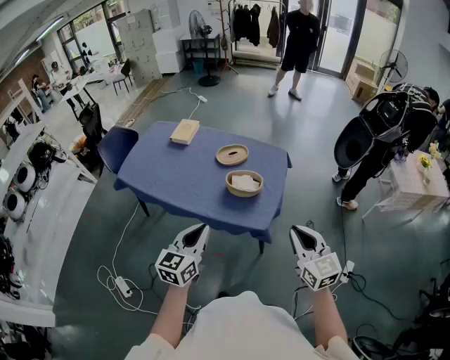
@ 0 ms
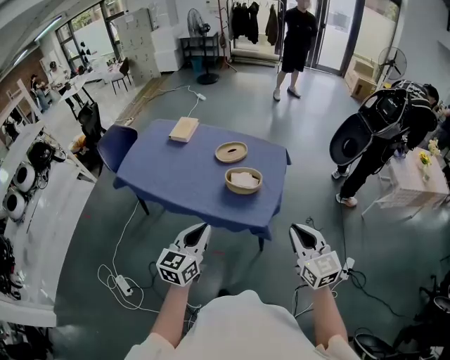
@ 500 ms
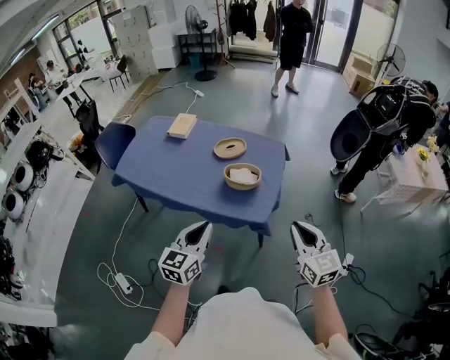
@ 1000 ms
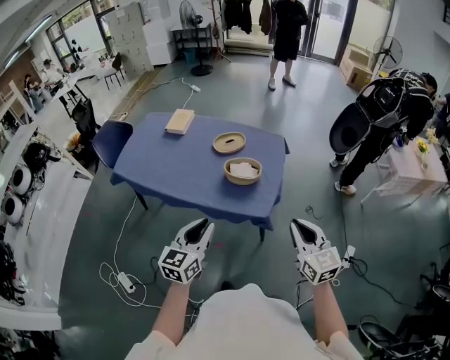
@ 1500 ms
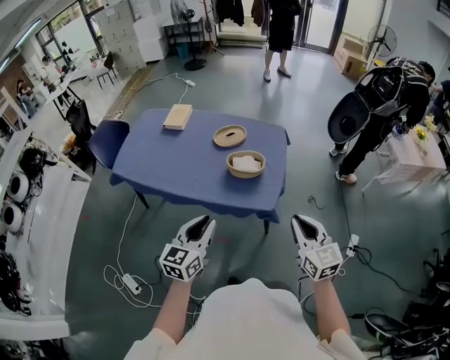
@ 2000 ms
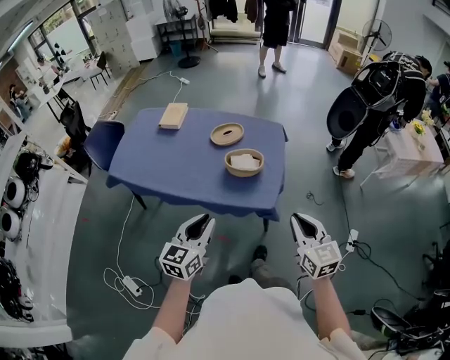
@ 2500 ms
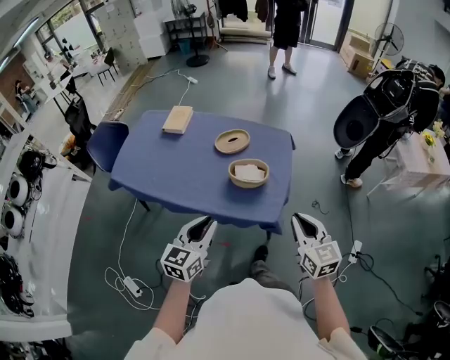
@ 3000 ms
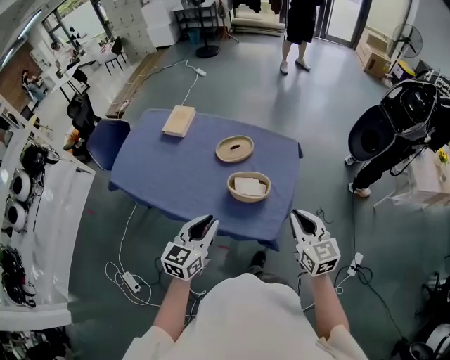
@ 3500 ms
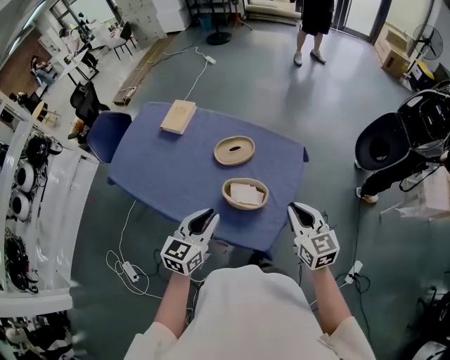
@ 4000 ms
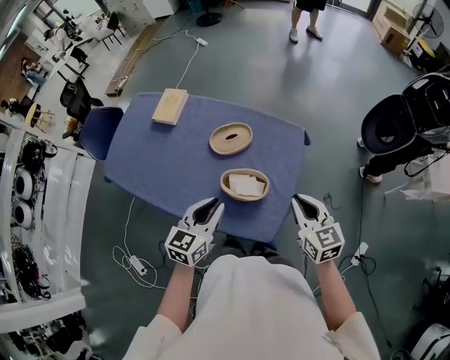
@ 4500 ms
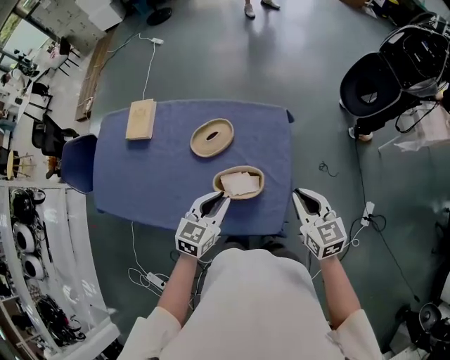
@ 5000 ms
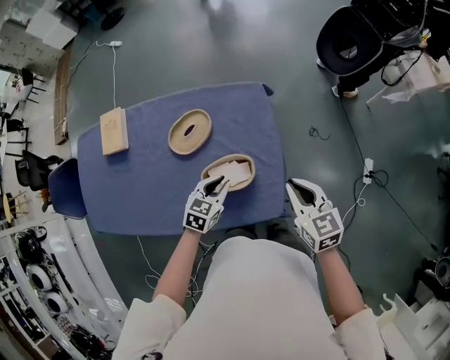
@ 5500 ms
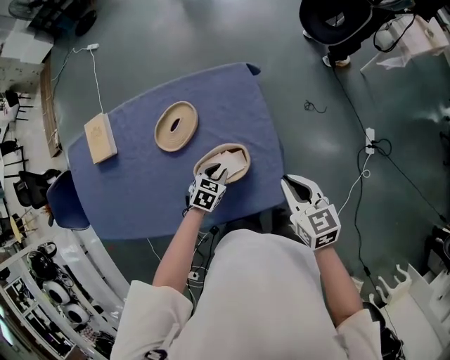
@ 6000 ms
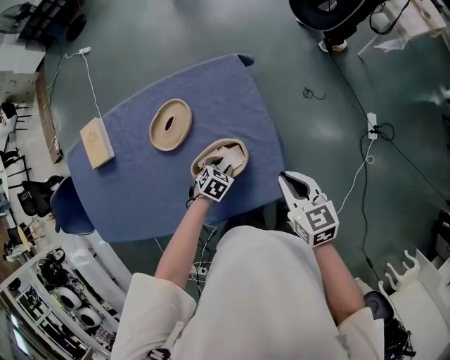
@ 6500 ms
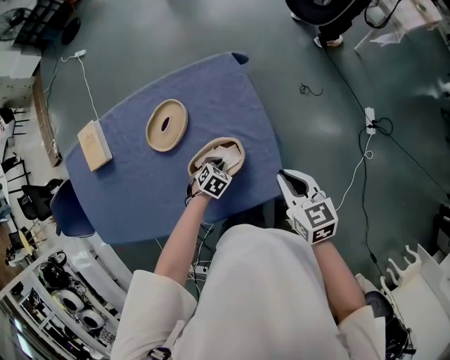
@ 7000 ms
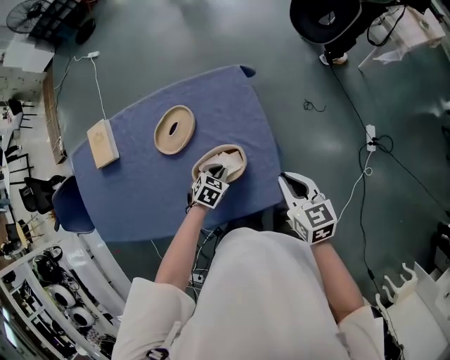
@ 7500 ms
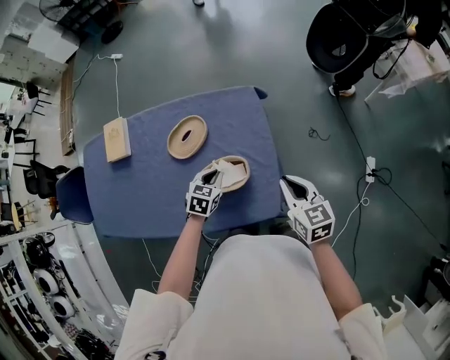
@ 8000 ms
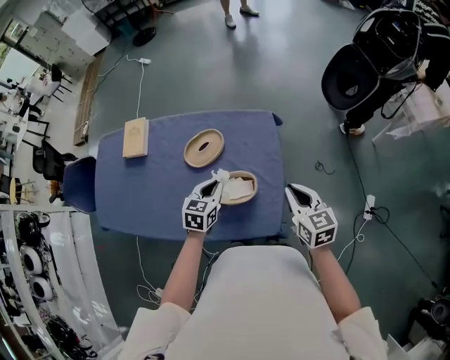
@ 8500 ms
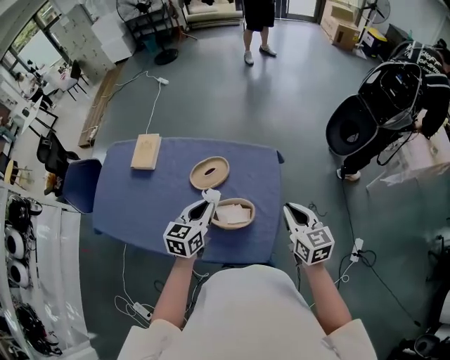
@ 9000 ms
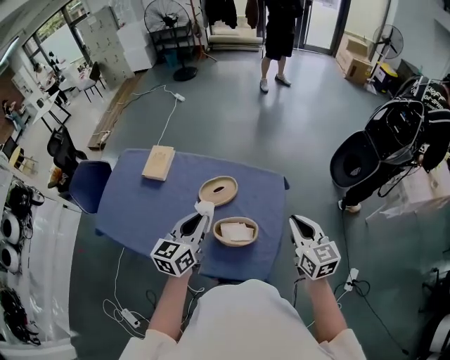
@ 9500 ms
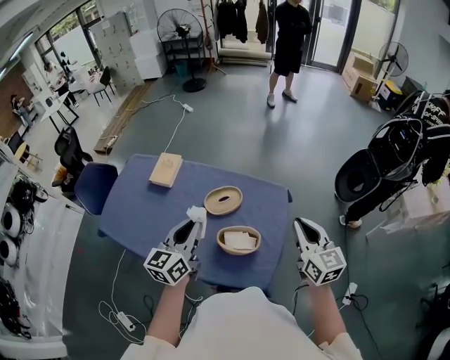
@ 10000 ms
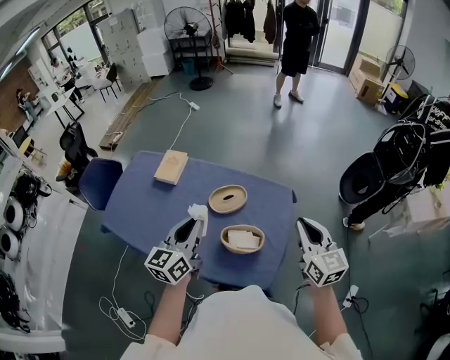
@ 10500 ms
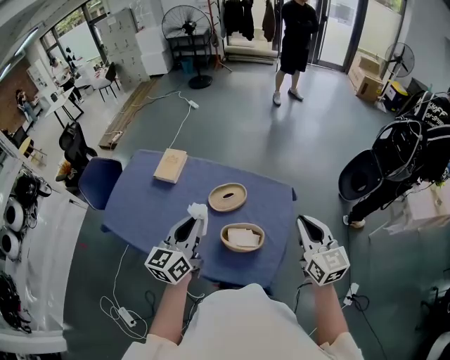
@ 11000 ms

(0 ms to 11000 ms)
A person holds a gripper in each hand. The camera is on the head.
0 ms - 2000 ms: The right gripper shifts by some 5 cm.
2000 ms - 3500 ms: Both grippers move forward, some 20 cm.
3500 ms - 5500 ms: The right gripper ends up some 20 cm from where it was, and turns by roughly 20 degrees; the left gripper shifts by approximately 35 cm, and turns by about 40 degrees.
5500 ms - 7500 ms: The left gripper moves downward, some 15 cm, and changes its angle by about 30 degrees. Meanwhile the right gripper travels downward by approximately 5 cm.
7500 ms - 9000 ms: The right gripper goes about 15 cm upward, and swivels about 20 degrees. Meanwhile the left gripper travels upward by about 30 cm, and tips its fingers upward by roughly 40 degrees.
9000 ms - 11000 ms: The left gripper goes approximately 15 cm upward, to the left and backward, and changes its angle by roughly 20 degrees. Meanwhile the right gripper is displaced upward by approximately 10 cm.

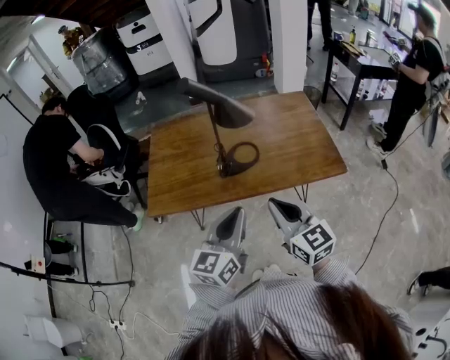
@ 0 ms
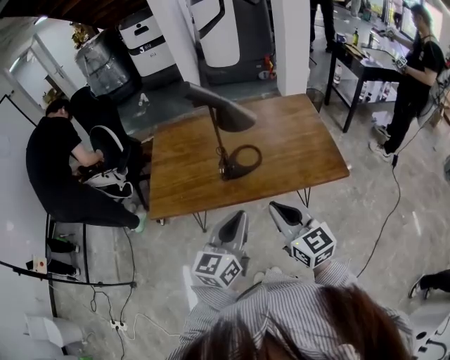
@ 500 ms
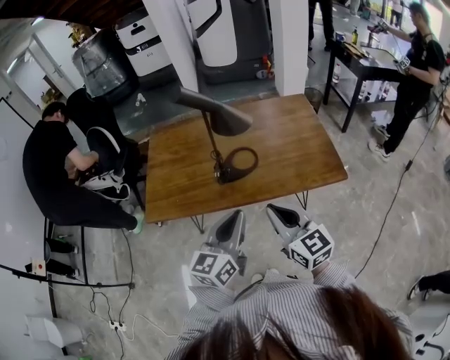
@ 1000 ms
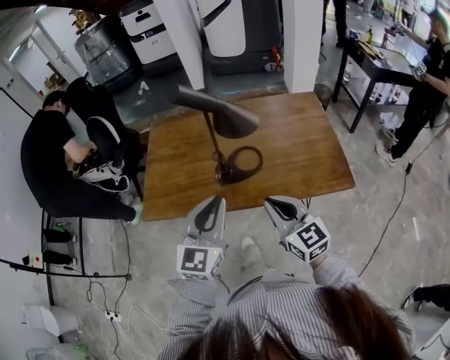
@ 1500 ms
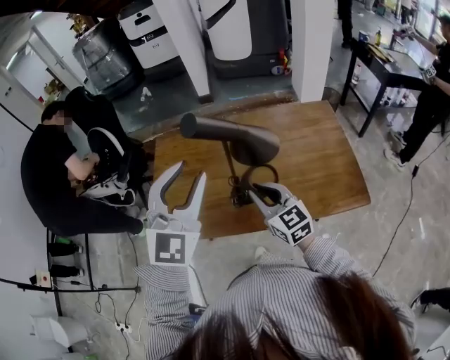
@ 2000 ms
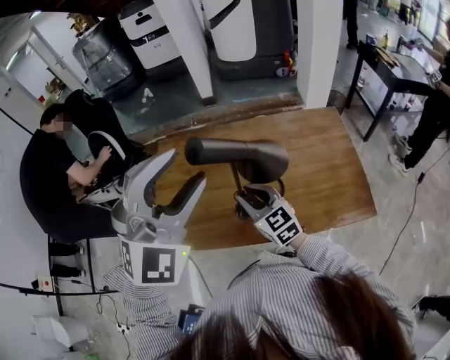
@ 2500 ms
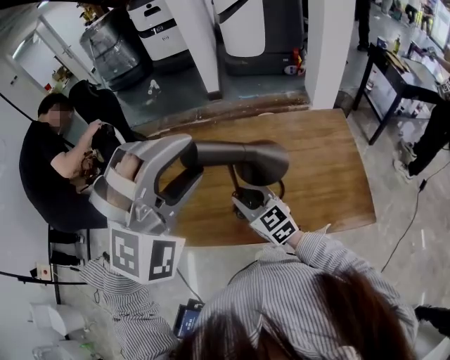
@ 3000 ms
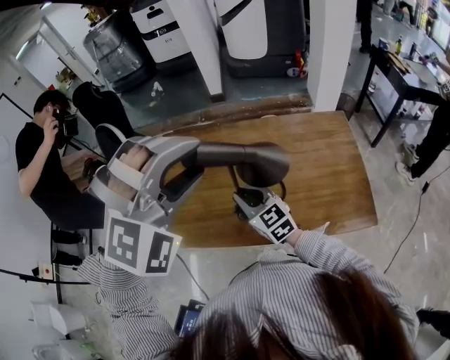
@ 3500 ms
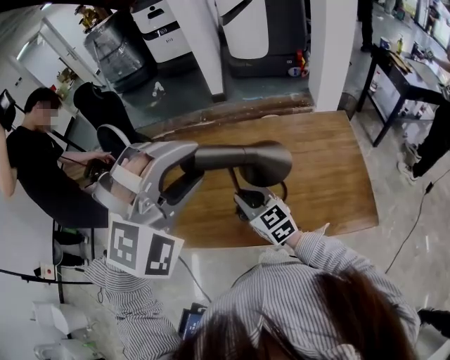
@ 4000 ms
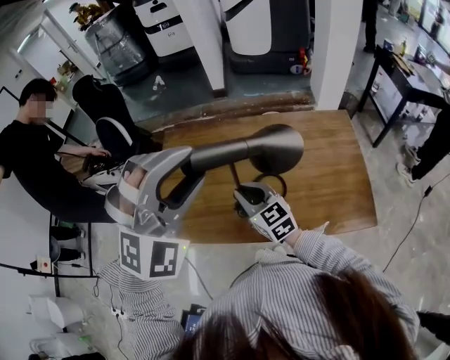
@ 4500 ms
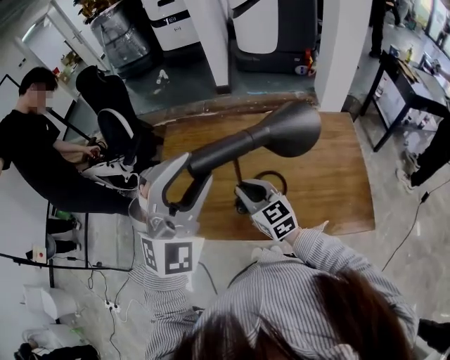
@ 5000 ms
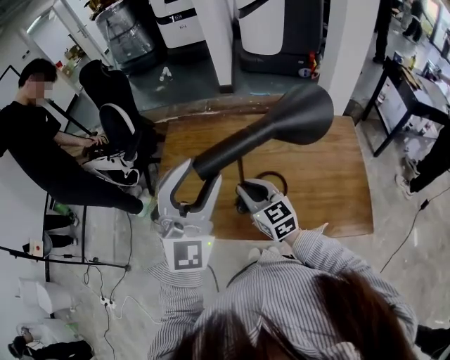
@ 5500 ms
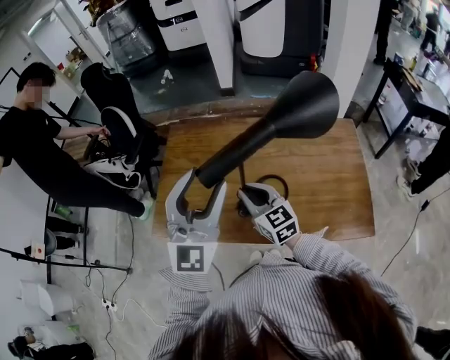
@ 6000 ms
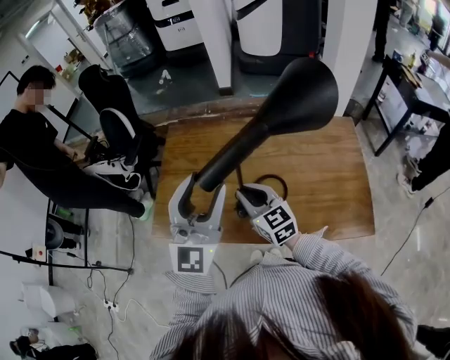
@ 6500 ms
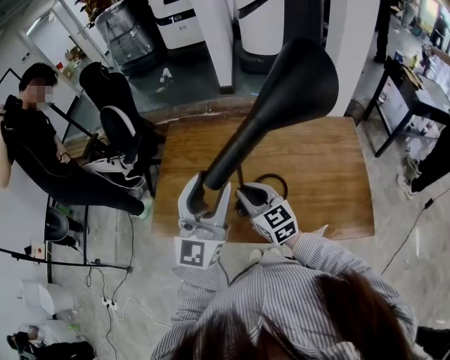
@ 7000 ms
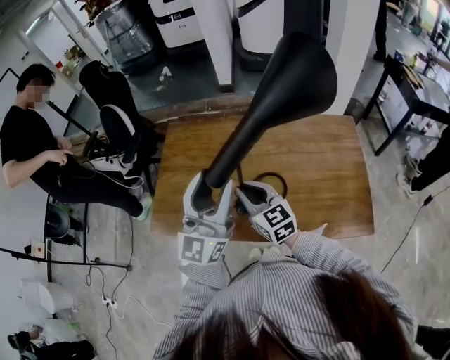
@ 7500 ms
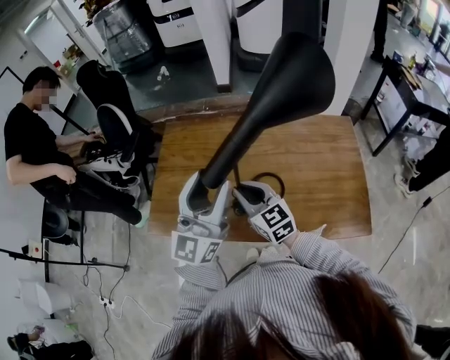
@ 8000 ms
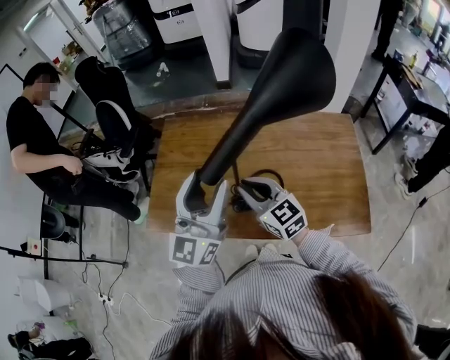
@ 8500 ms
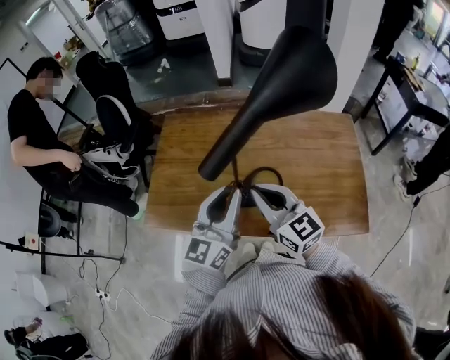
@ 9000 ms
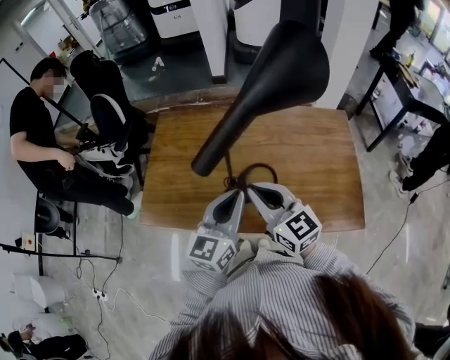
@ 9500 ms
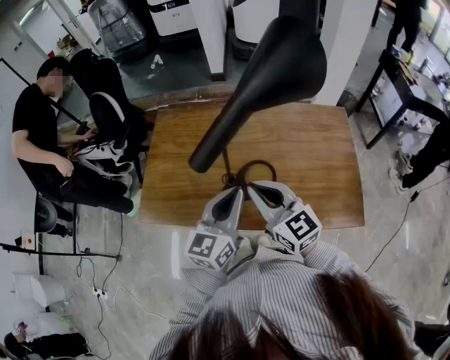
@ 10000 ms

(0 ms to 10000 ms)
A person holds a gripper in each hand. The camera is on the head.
0 ms - 2000 ms: The right gripper travels forward by some 25 cm; the left gripper shifts some 25 cm forward and upward, rotates around the line of its fingers by some 50 degrees, clockwise from behind, and opens its fingers.
2000 ms - 4000 ms: The right gripper is displaced forward by some 5 cm, while the left gripper travels to the right by some 5 cm, and twists about 50 degrees clockwise, seen from behind.
4000 ms - 6000 ms: The left gripper is displaced downward by some 5 cm, and tilts its fingers approximately 40 degrees upward.
6000 ms - 8000 ms: The left gripper rotates some 30 degrees.
8000 ms - 10000 ms: The right gripper travels backward, upward and to the right by about 10 cm. Meanwhile the left gripper is displaced downward and to the right by roughly 10 cm, changes its angle by some 30 degrees, and closes.

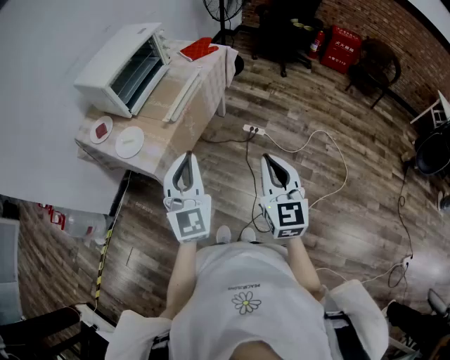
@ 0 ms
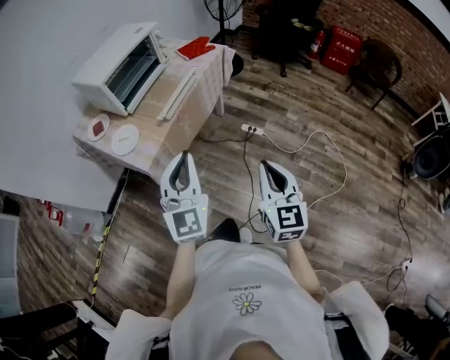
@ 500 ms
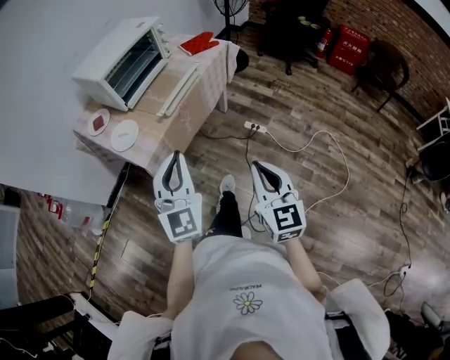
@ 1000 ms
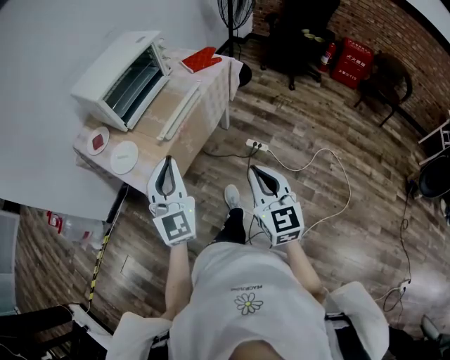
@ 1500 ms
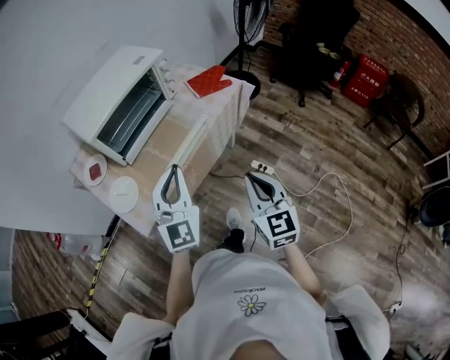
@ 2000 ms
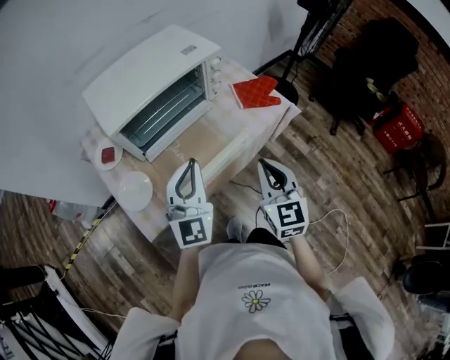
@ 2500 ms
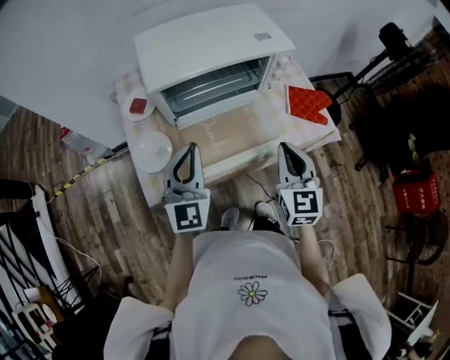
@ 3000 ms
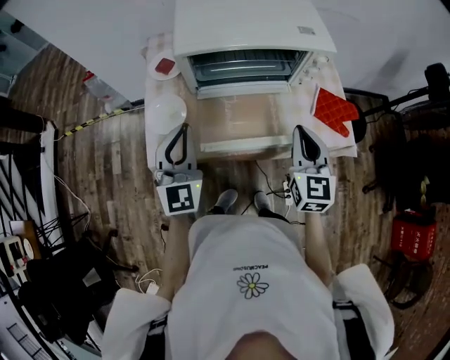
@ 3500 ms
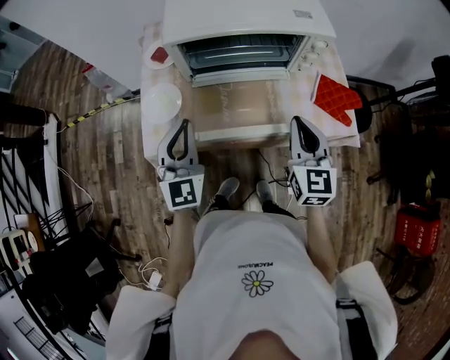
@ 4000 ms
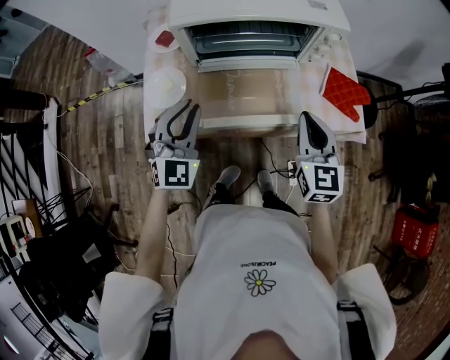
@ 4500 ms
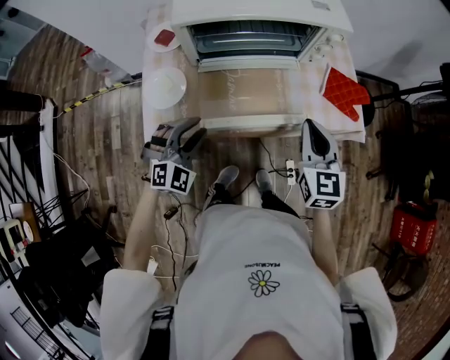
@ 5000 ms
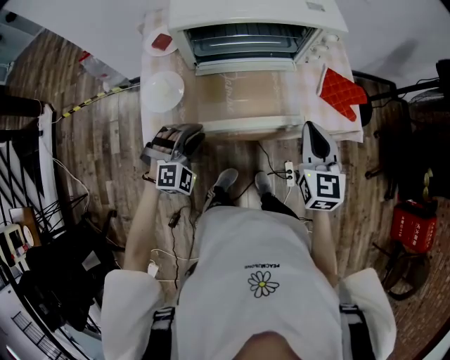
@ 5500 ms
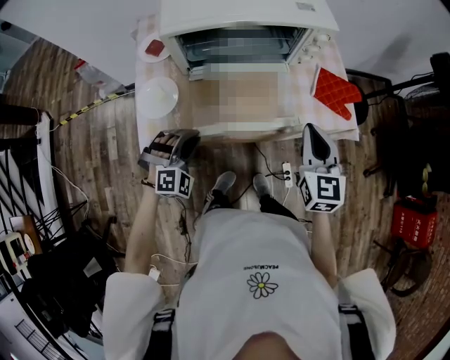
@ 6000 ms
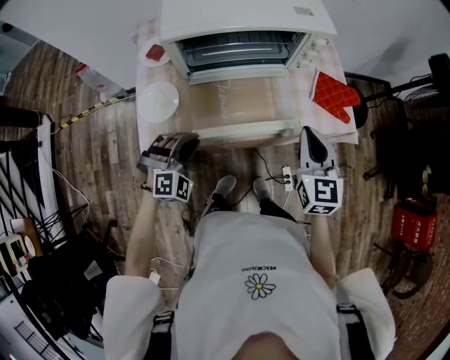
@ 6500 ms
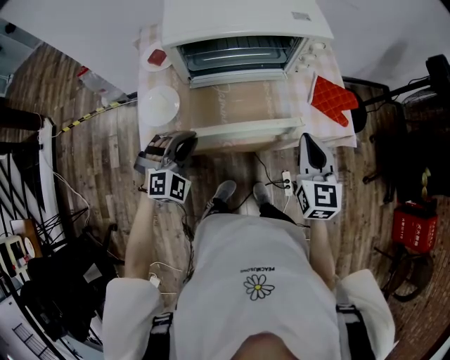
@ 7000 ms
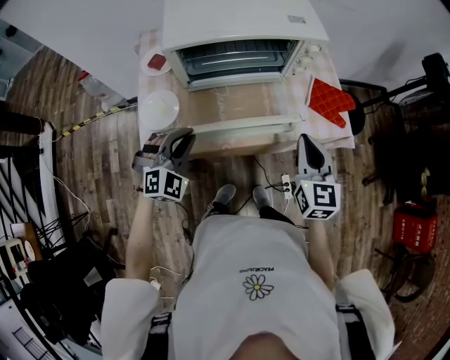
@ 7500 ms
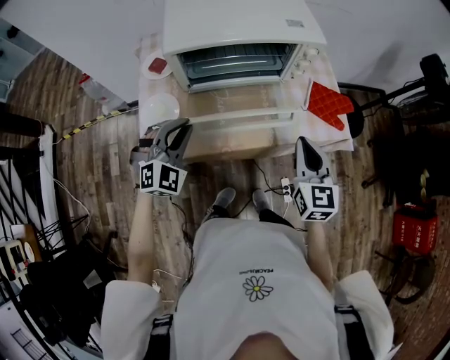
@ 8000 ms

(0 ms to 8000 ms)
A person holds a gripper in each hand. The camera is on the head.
0 ms - 2000 ms: The two grippers go some 25 cm forward. The right gripper swivels approximately 20 degrees.
2000 ms - 4000 ms: The left gripper shifts by some 15 cm, and changes its angle by approximately 50 degrees; the right gripper shifts by roughly 30 cm, and swivels roughly 40 degrees.
4000 ms - 6000 ms: The left gripper heads downward, covering approximately 15 cm, and points its fingers about 40 degrees further downward.
6000 ms - 8000 ms: The left gripper is displaced upward by some 10 cm.
